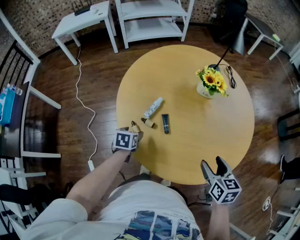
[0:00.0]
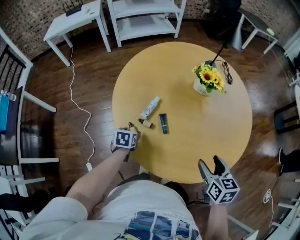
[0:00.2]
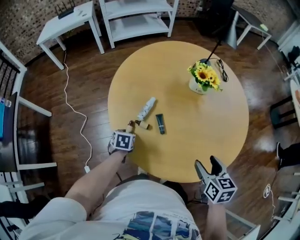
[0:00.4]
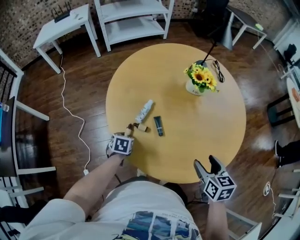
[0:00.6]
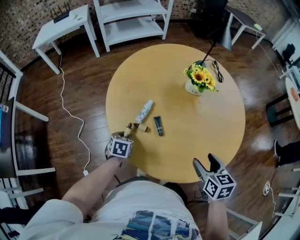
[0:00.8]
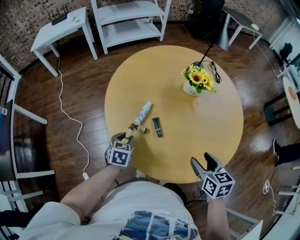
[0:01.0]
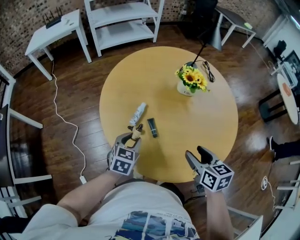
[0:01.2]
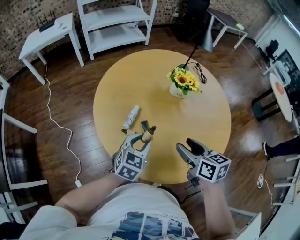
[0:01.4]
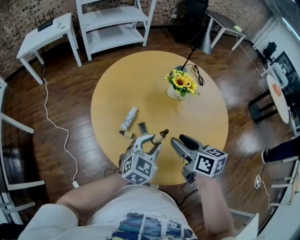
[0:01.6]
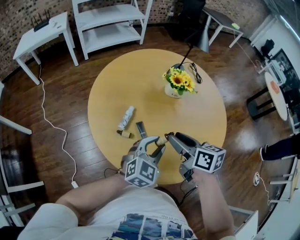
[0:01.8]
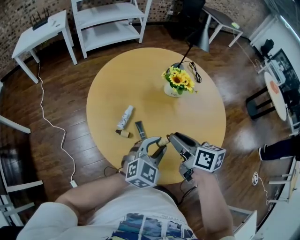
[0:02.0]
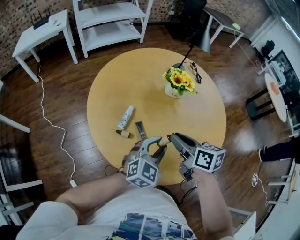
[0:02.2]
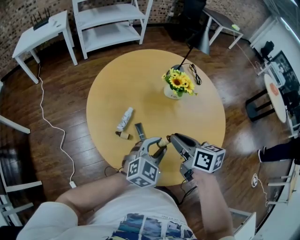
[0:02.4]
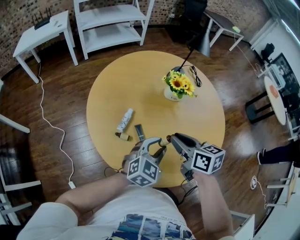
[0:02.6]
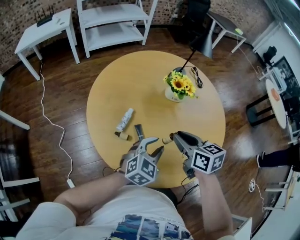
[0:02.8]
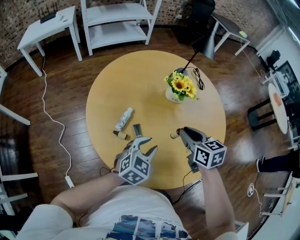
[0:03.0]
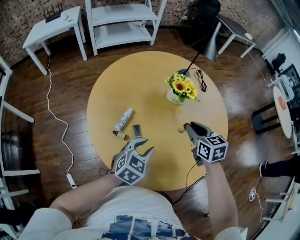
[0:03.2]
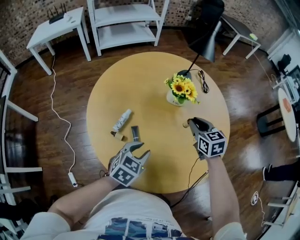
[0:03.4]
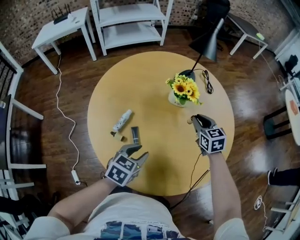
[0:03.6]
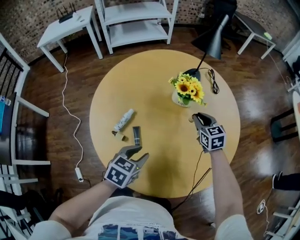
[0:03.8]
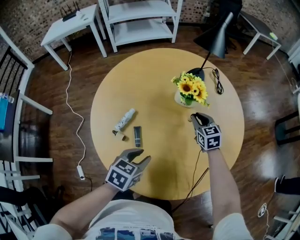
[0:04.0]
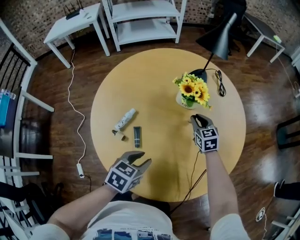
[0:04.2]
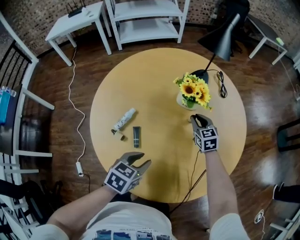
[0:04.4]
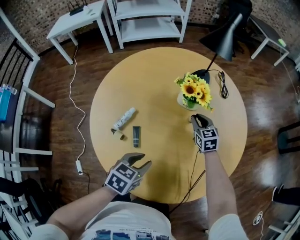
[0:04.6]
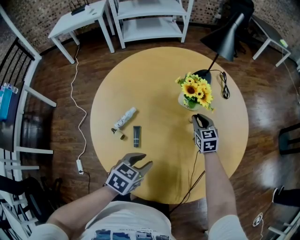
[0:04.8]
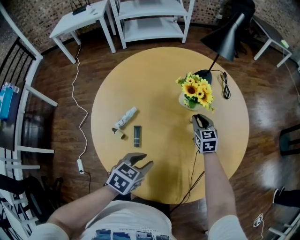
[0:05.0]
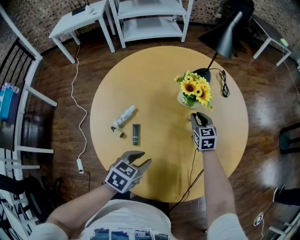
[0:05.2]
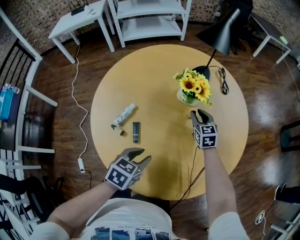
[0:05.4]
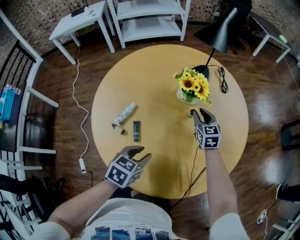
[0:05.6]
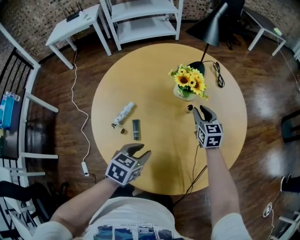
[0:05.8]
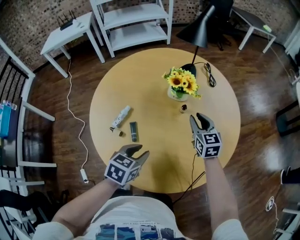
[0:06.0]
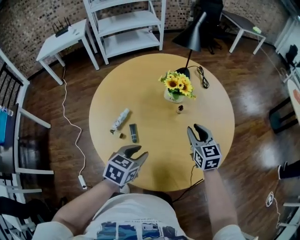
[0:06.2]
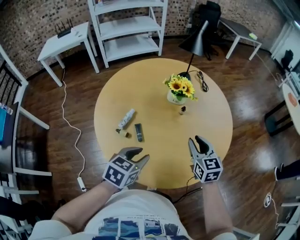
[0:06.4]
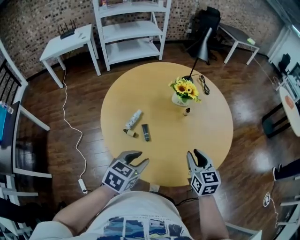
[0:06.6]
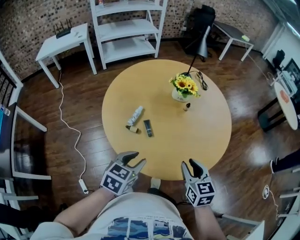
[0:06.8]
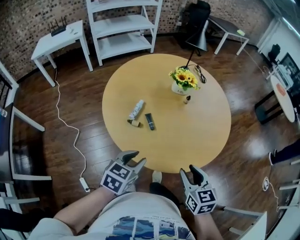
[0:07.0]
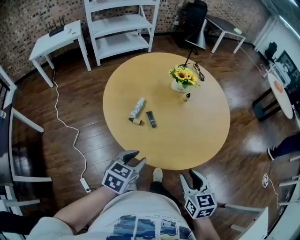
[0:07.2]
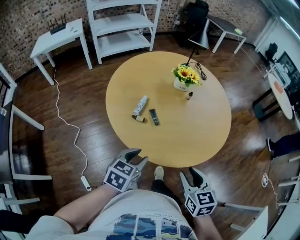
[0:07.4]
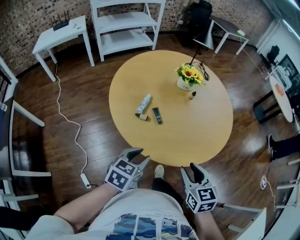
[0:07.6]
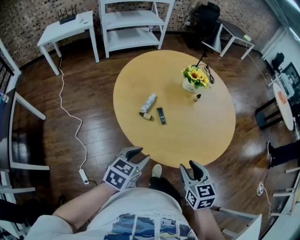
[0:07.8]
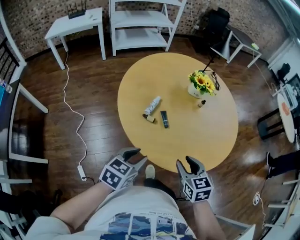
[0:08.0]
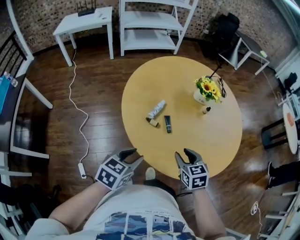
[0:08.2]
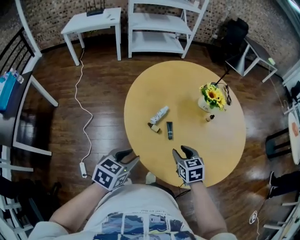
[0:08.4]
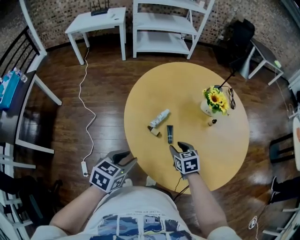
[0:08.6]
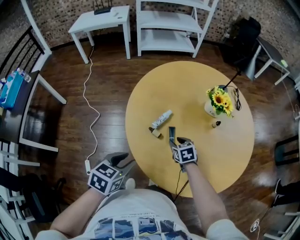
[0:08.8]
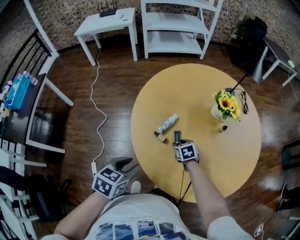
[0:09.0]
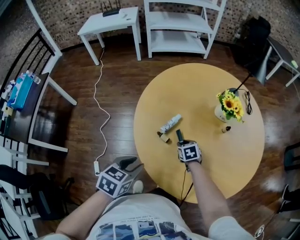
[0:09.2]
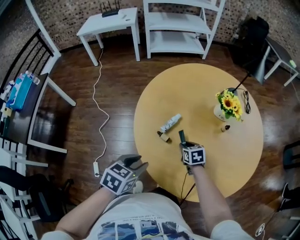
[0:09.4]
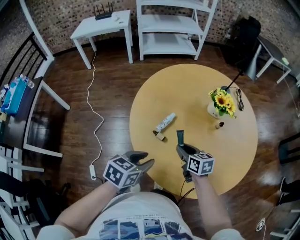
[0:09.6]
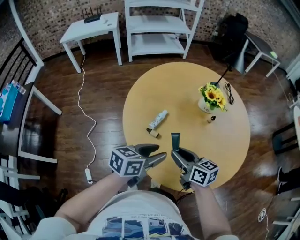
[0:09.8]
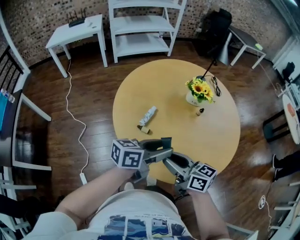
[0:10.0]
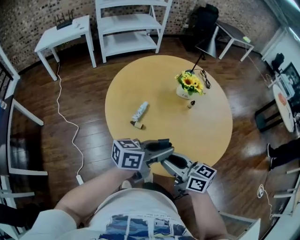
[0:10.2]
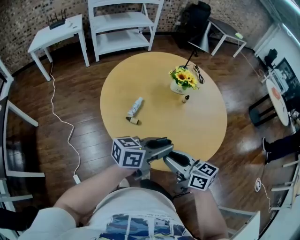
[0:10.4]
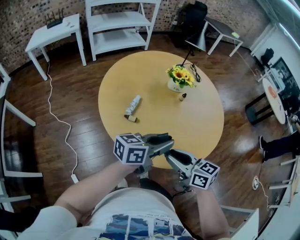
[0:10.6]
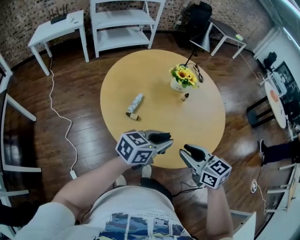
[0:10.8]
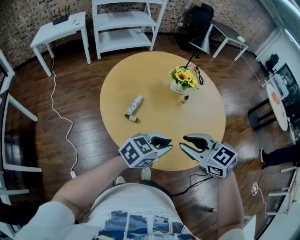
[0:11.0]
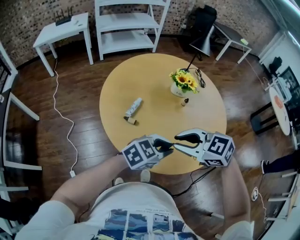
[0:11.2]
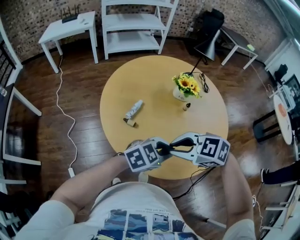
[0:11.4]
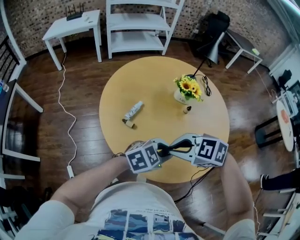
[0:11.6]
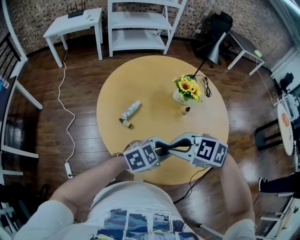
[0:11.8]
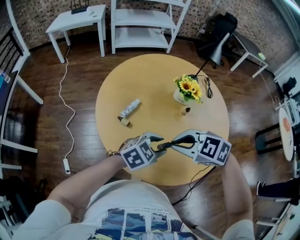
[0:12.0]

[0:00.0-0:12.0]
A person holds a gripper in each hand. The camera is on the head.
0:00.0 to 0:01.6: The right gripper goes approximately 15 cm to the left, forward and upward, rotates roughly 20 degrees, and closes its fingers. The left gripper heads upward and to the right, covering about 25 cm, tilts its fingers roughly 30 degrees upward, and closes its fingers.
0:01.6 to 0:03.0: The right gripper heads forward and to the right, covering some 10 cm, and closes.
0:03.0 to 0:04.4: The left gripper goes approximately 5 cm downward and to the right, and turns by approximately 30 degrees. The right gripper travels forward, downward and to the right by about 25 cm.
0:04.4 to 0:06.0: The right gripper travels upward and backward by approximately 10 cm.
0:06.0 to 0:07.6: The right gripper is displaced backward by approximately 50 cm. Meanwhile the left gripper heads backward and to the left, covering about 30 cm.
0:07.6 to 0:09.0: The right gripper ends up some 40 cm from where it was, and turns by some 40 degrees; the left gripper changes place by about 10 cm, and changes its angle by about 30 degrees.
0:09.0 to 0:10.4: The right gripper travels upward and backward by some 35 cm, and points its fingers about 40 degrees further upward, while the left gripper moves to the right and upward, some 20 cm, and points its fingers some 50 degrees further upward.
0:10.4 to 0:12.0: The left gripper shifts by some 15 cm, points its fingers roughly 30 degrees further downward, and opens; the right gripper shifts by roughly 15 cm, tilts its fingers about 30 degrees downward, and closes its fingers.

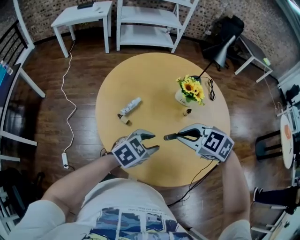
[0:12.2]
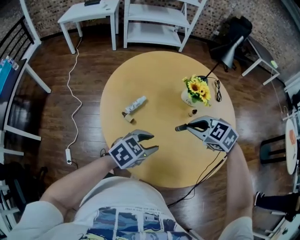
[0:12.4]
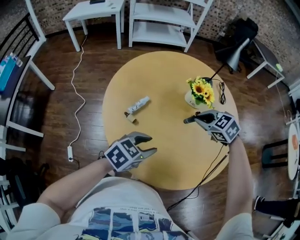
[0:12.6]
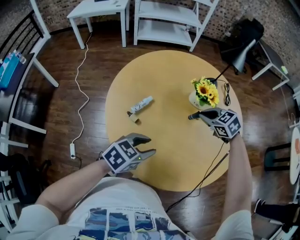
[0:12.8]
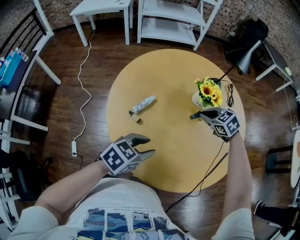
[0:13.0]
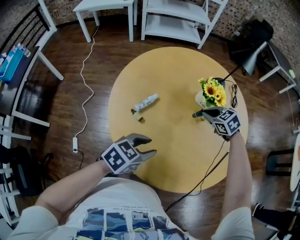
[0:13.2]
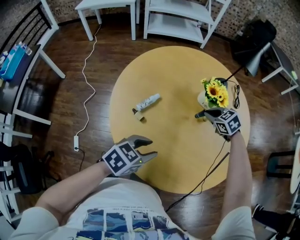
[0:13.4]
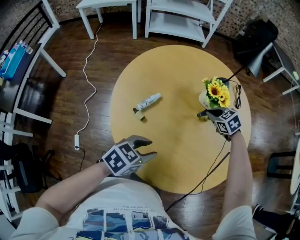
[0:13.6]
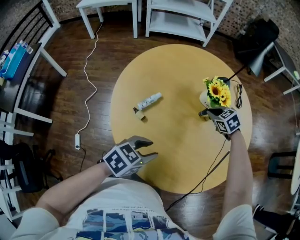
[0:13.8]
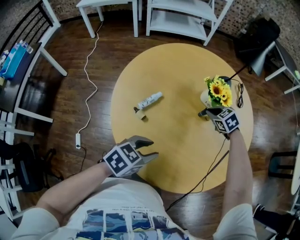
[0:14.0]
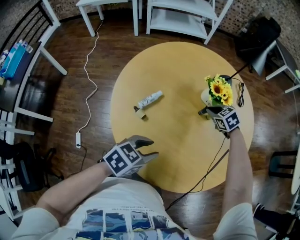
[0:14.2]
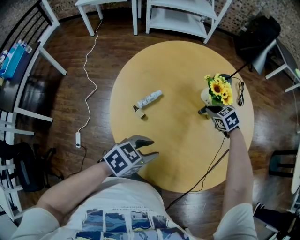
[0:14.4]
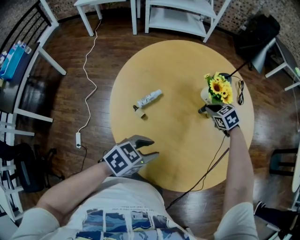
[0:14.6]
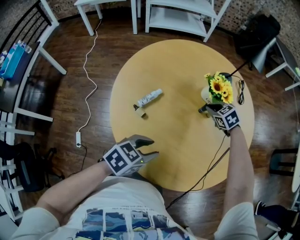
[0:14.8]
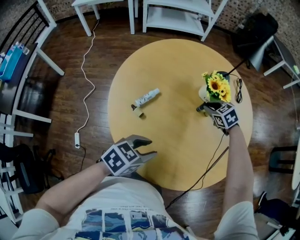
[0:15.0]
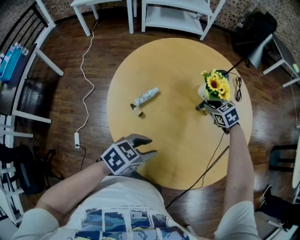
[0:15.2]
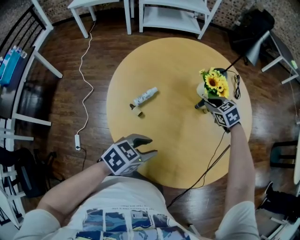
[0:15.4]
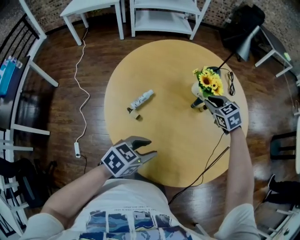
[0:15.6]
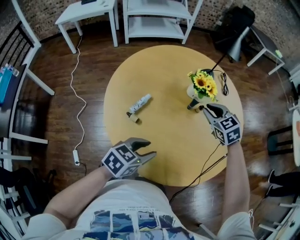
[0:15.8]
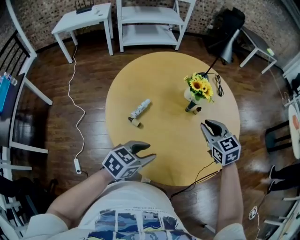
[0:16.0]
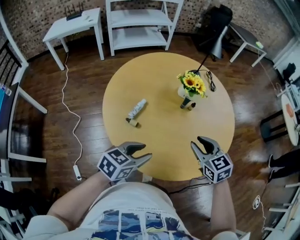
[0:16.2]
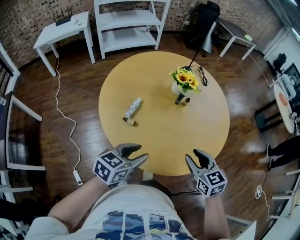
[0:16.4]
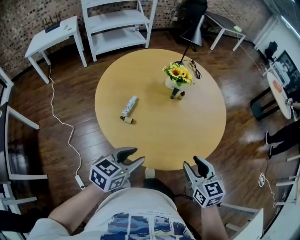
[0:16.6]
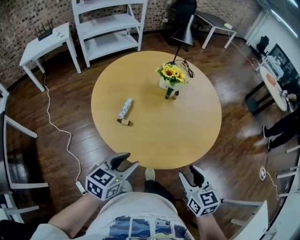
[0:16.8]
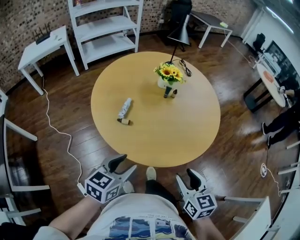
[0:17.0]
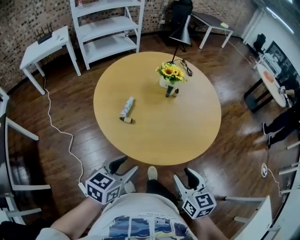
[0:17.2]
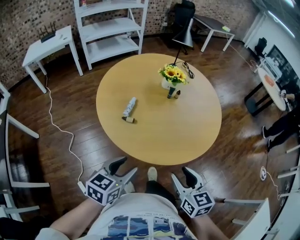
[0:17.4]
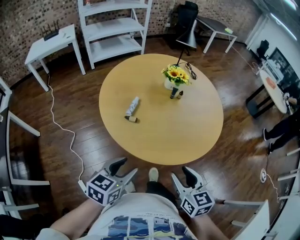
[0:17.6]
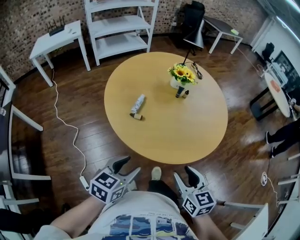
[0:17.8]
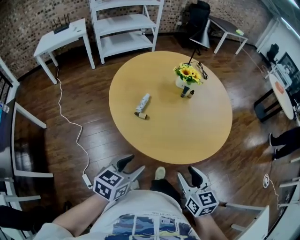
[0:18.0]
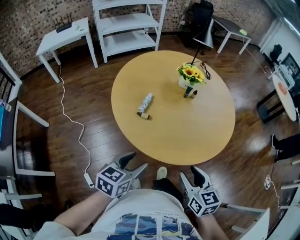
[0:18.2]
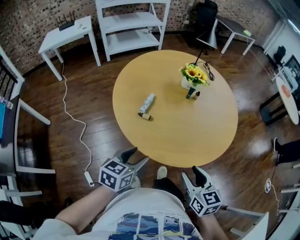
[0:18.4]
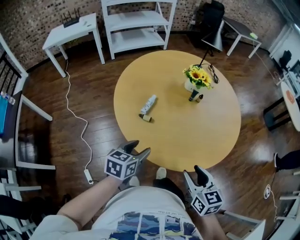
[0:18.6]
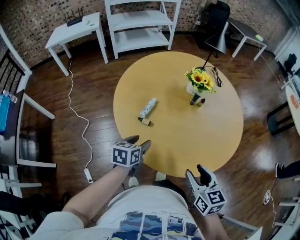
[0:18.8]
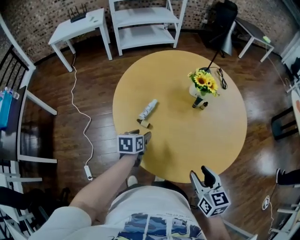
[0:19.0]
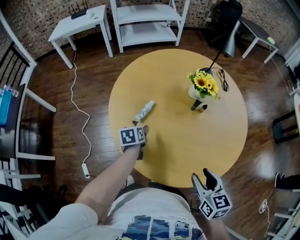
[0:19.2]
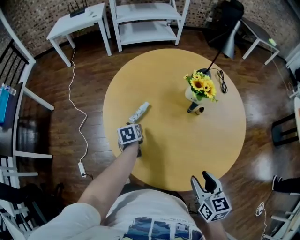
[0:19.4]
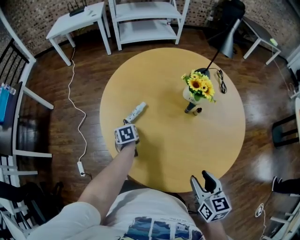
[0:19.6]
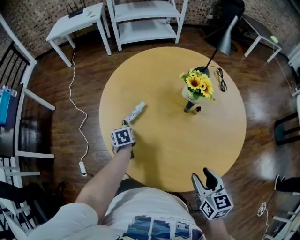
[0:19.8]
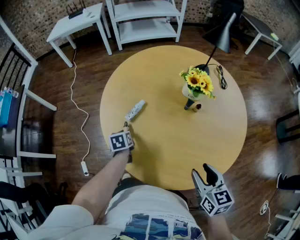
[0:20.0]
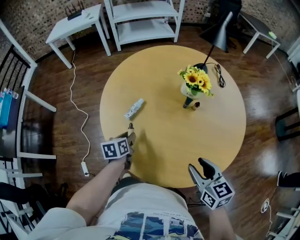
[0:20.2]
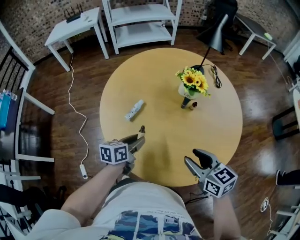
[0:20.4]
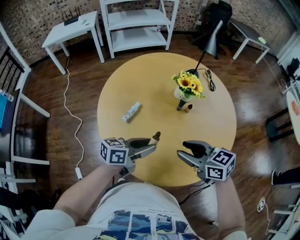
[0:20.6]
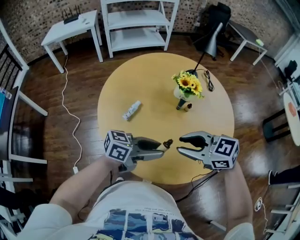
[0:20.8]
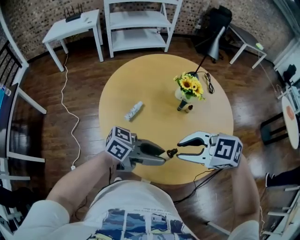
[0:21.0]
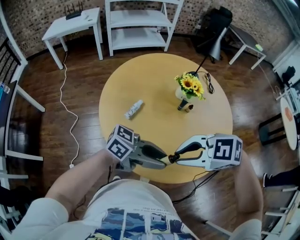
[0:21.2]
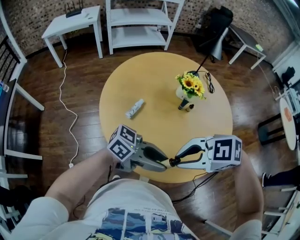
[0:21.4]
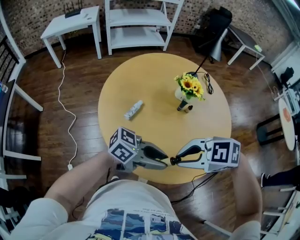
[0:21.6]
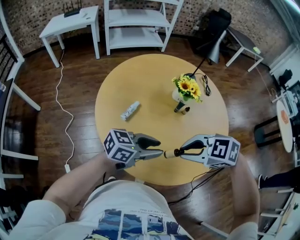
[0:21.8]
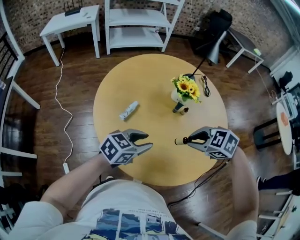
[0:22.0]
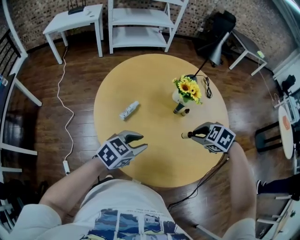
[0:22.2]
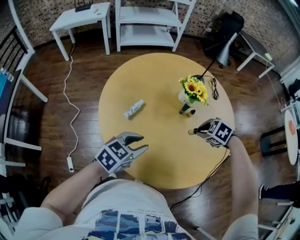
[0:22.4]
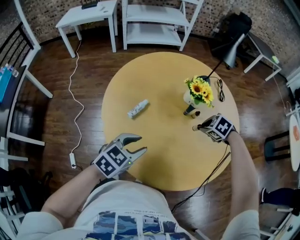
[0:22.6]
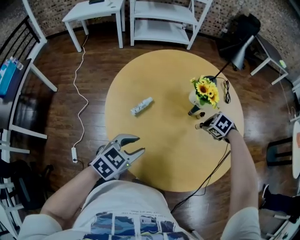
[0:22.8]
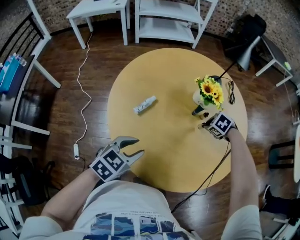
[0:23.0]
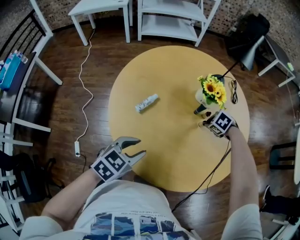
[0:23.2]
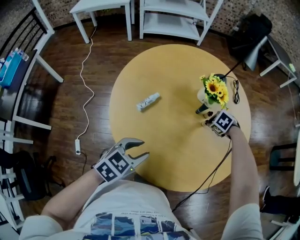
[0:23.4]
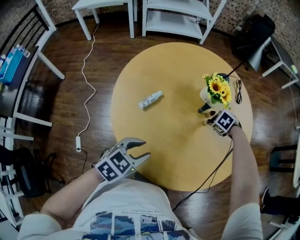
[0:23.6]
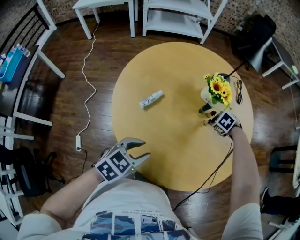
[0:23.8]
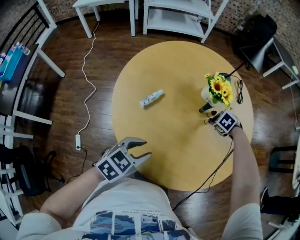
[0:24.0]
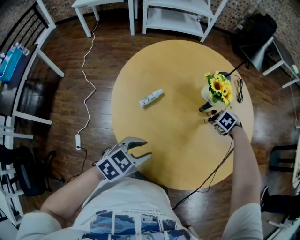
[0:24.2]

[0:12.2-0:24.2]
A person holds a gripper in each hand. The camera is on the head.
0:12.2 to 0:13.8: The right gripper moves about 30 cm, and changes its angle by some 20 degrees. The left gripper changes place by roughly 5 cm.
0:13.8 to 0:15.2: The grippers make only small movements.
0:15.2 to 0:16.6: The right gripper moves backward, roughly 40 cm, and changes its angle by roughly 50 degrees; the left gripper is displaced backward, upward and to the left by roughly 15 cm.
0:16.6 to 0:18.2: Both grippers travel together backward and to the left, about 10 cm.
0:18.2 to 0:19.8: The left gripper ends up some 35 cm from where it was, and angles its fingers downward, by about 30 degrees. Meanwhile the right gripper shifts by approximately 30 cm.
0:19.8 to 0:21.2: The left gripper moves upward, roughly 30 cm, and tilts its fingers some 70 degrees upward; the right gripper shifts by roughly 20 cm, changes its angle by approximately 80 degrees, and closes up.
0:21.2 to 0:22.6: The left gripper changes place by approximately 15 cm, and tips its fingers downward by approximately 40 degrees; the right gripper shifts by roughly 35 cm, and angles its fingers downward, by some 30 degrees.
0:22.6 to 0:24.2: The left gripper shifts by approximately 5 cm. The right gripper moves downward, some 10 cm.
